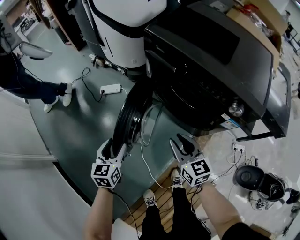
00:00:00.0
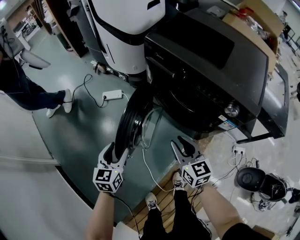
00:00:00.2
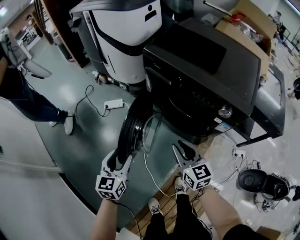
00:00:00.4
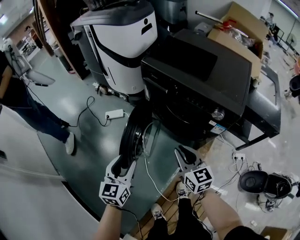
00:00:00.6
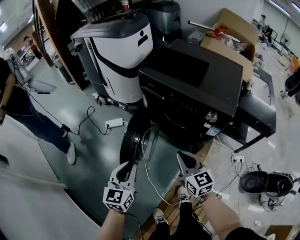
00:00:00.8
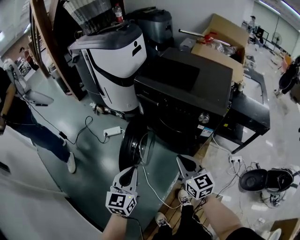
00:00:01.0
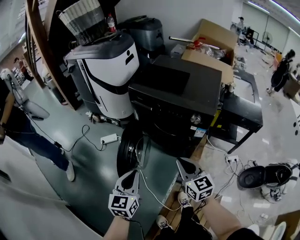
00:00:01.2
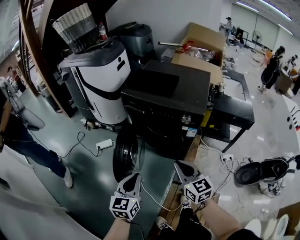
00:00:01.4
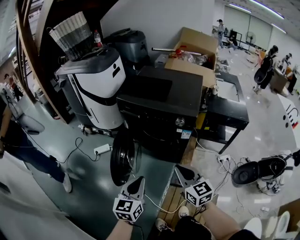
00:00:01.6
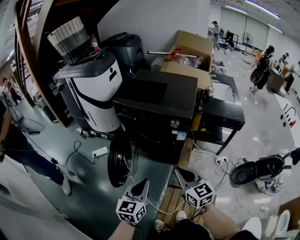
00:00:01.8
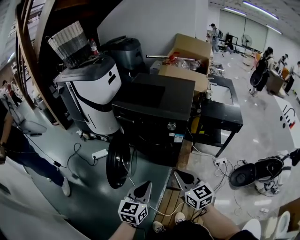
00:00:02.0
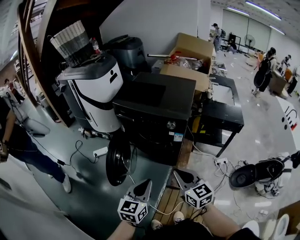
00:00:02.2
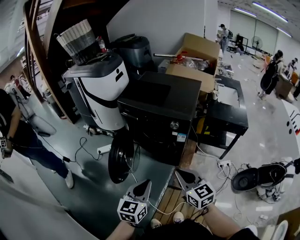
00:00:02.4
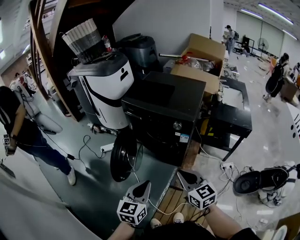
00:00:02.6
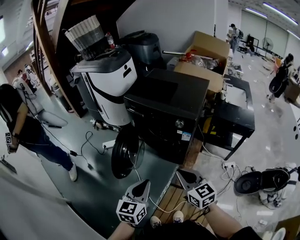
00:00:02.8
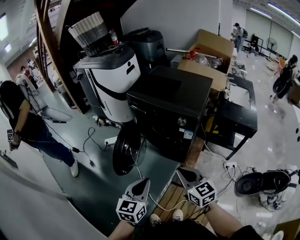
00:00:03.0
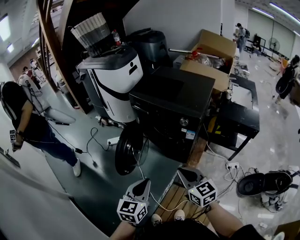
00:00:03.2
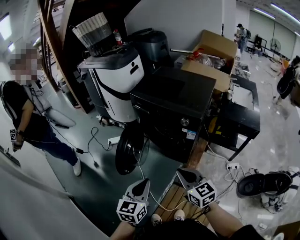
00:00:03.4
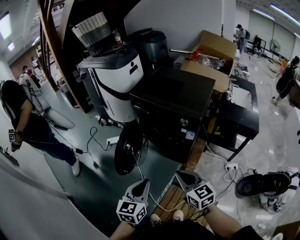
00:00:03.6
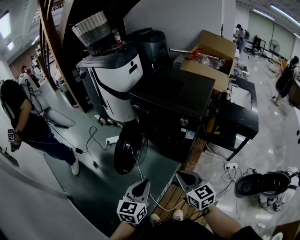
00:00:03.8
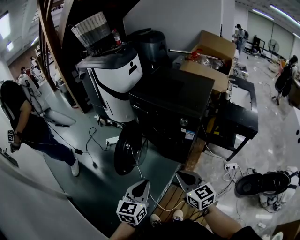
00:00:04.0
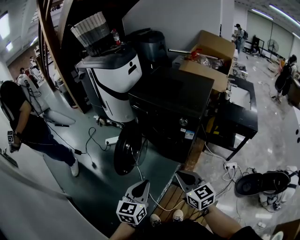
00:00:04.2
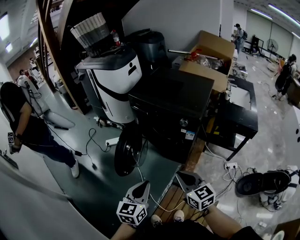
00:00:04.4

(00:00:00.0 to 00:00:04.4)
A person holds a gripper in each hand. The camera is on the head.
00:00:00.0 - 00:00:01.4: The left gripper is displaced upward, backward and to the right by roughly 30 cm, turns by roughly 30 degrees, and closes its fingers, while the right gripper moves upward and backward, some 25 cm, and closes up.
00:00:01.4 - 00:00:03.0: The two grippers go about 10 cm to the right and backward.
00:00:03.0 - 00:00:04.4: The grippers move only a little.

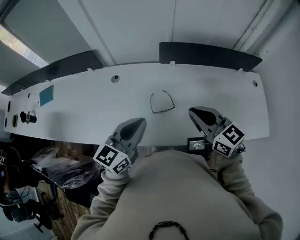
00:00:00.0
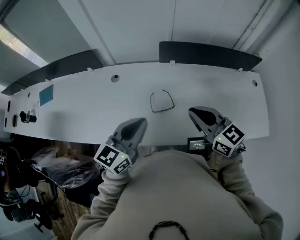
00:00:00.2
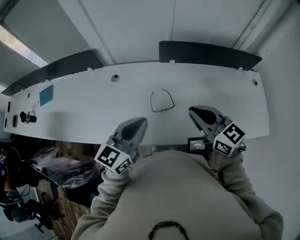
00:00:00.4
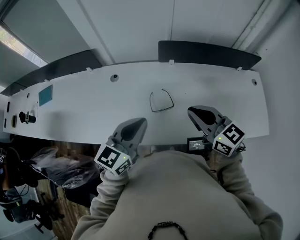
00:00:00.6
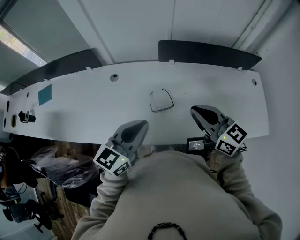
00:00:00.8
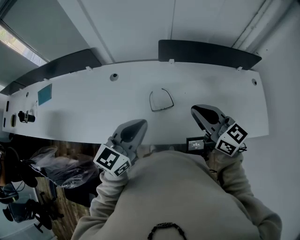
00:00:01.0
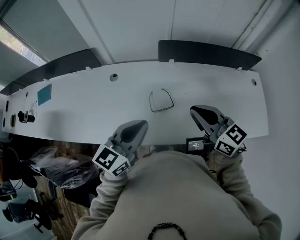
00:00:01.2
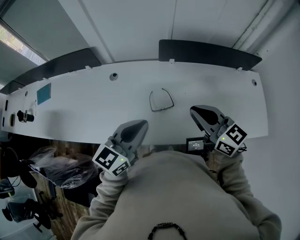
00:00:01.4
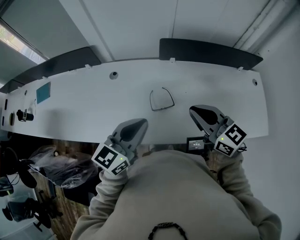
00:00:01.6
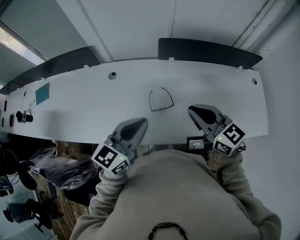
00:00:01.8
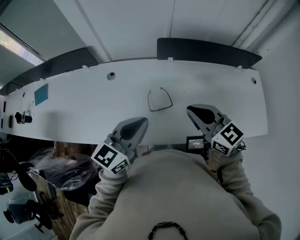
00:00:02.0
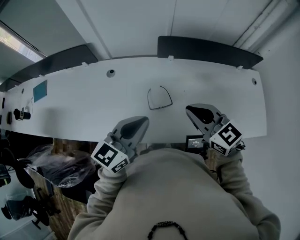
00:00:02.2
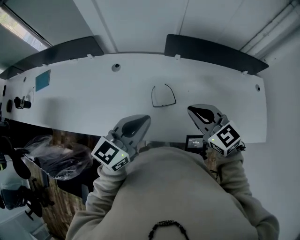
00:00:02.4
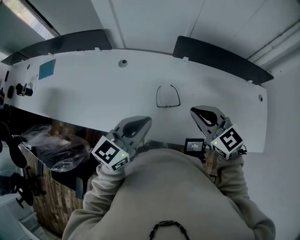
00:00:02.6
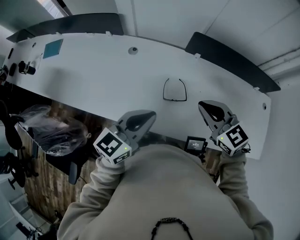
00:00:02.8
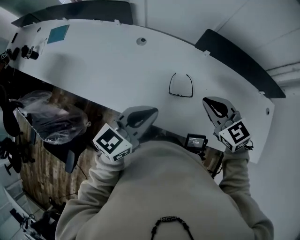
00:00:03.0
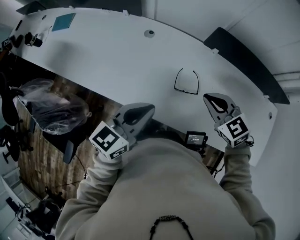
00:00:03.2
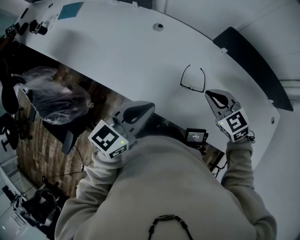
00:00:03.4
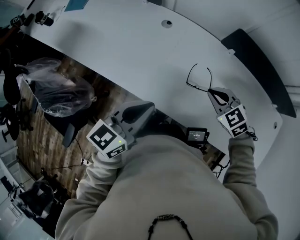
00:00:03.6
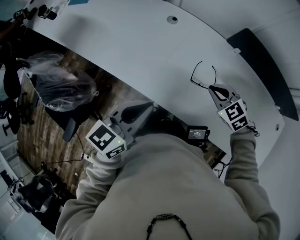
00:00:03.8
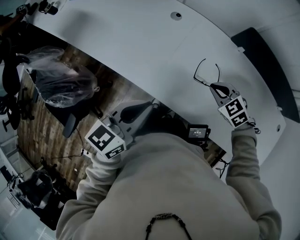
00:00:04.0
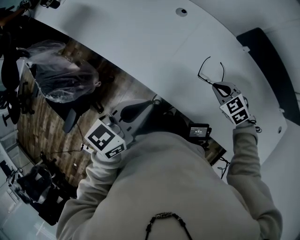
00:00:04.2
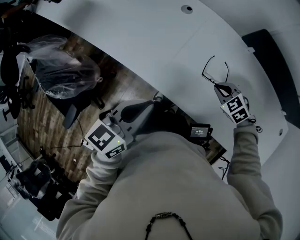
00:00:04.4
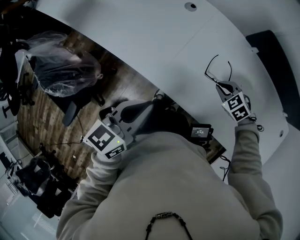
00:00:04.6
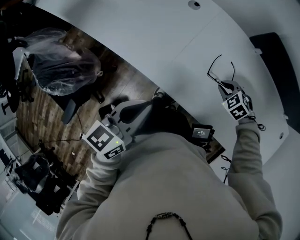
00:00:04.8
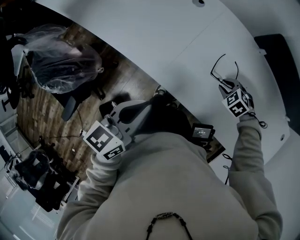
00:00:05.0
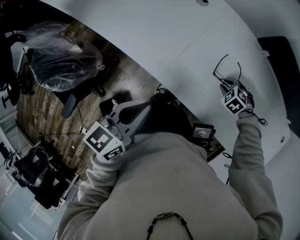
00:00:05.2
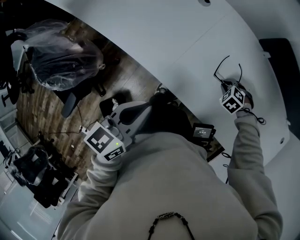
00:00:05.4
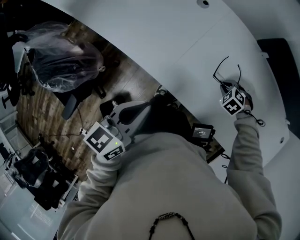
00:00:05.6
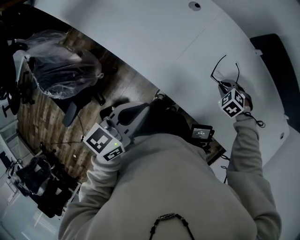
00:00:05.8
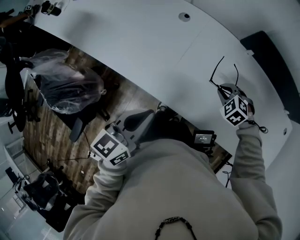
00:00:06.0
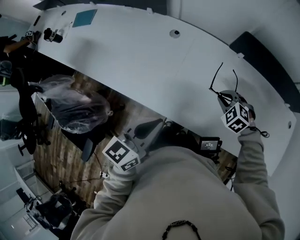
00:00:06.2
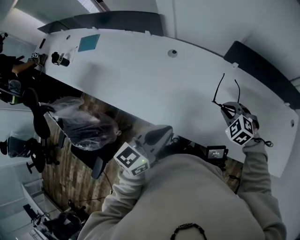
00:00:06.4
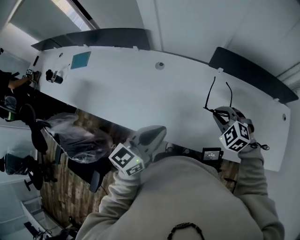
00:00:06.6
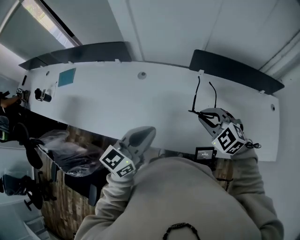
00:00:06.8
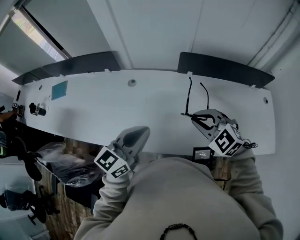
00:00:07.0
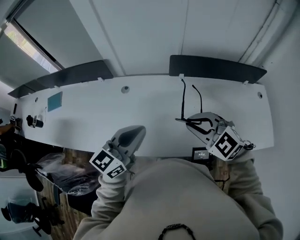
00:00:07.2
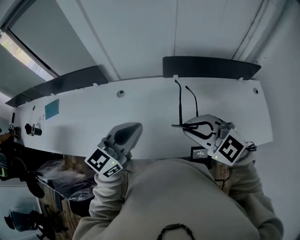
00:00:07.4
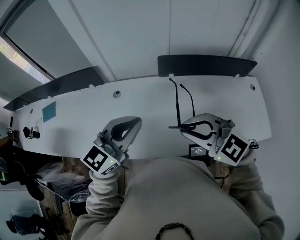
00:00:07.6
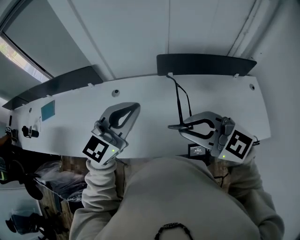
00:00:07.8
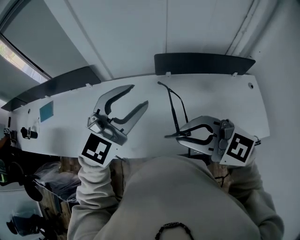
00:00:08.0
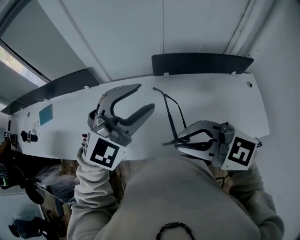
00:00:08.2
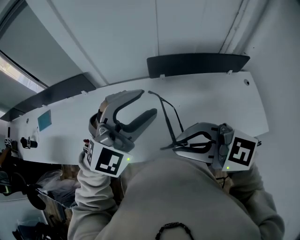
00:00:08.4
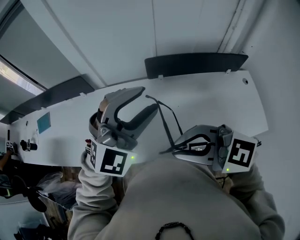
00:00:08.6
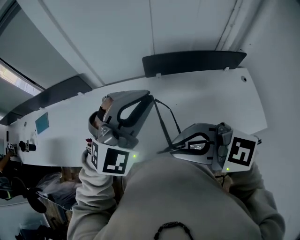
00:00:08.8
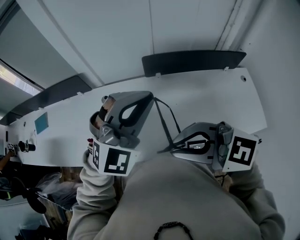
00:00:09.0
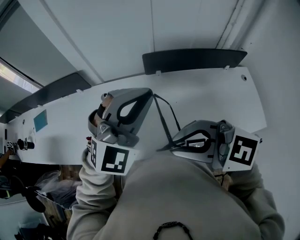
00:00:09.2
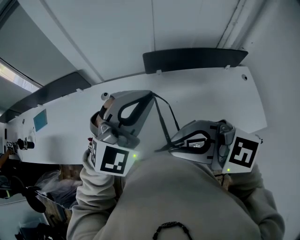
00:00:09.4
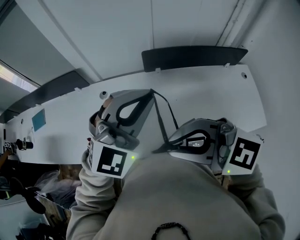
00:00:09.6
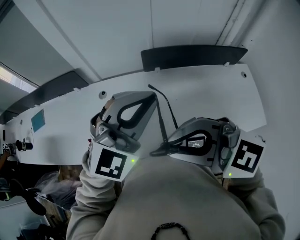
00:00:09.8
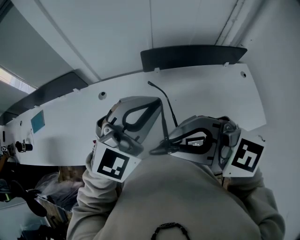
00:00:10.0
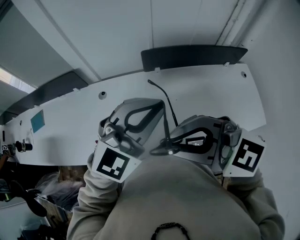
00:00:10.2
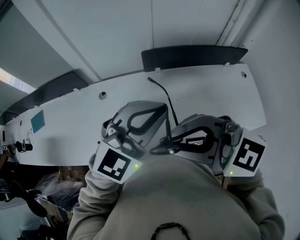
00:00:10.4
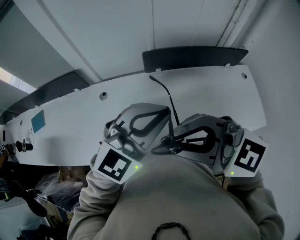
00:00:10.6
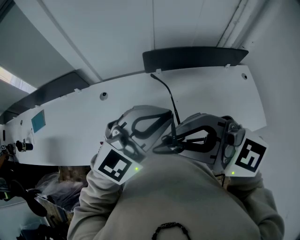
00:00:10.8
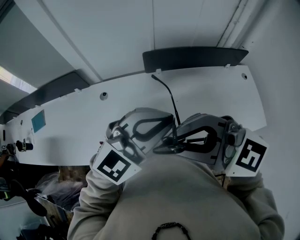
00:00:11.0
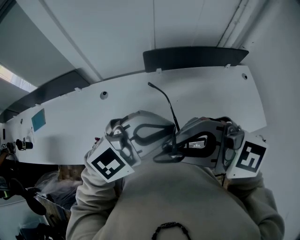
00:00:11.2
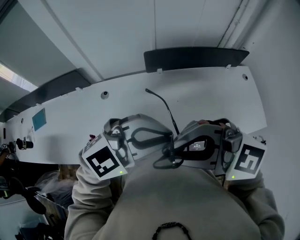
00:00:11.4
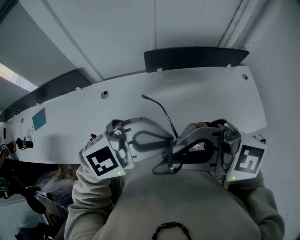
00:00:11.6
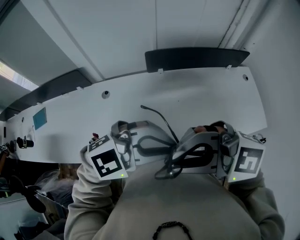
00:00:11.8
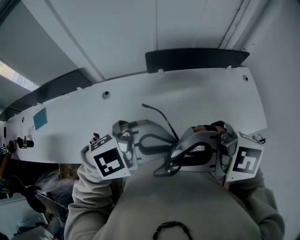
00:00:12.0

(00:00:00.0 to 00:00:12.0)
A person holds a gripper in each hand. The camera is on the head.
00:00:00.0 - 00:00:01.6: The grippers make only small movements.
00:00:01.6 - 00:00:03.0: The right gripper shifts some 5 cm downward, and swivels roughly 30 degrees.
00:00:03.0 - 00:00:04.4: The left gripper is displaced to the left, downward and backward by roughly 15 cm, and changes its angle by roughly 20 degrees. Meanwhile the right gripper shifts some 20 cm downward, and turns by approximately 40 degrees.
00:00:04.4 - 00:00:06.0: The right gripper moves some 10 cm downward and comes back.
00:00:06.0 - 00:00:07.6: The left gripper is displaced upward, to the right and forward by about 25 cm, and rotates approximately 50 degrees. The right gripper moves upward, about 35 cm, and points its fingers about 40 degrees further upward.
00:00:07.6 - 00:00:09.0: The left gripper ends up roughly 15 cm from where it was, rolls clockwise, seen from behind, by roughly 40 degrees, and opens and closes again; the right gripper shifts approximately 5 cm upward.
00:00:09.0 - 00:00:10.4: The left gripper turns by roughly 20 degrees.
00:00:10.4 - 00:00:12.0: The right gripper changes place by approximately 5 cm; the left gripper changes place by roughly 10 cm, and turns by roughly 40 degrees.

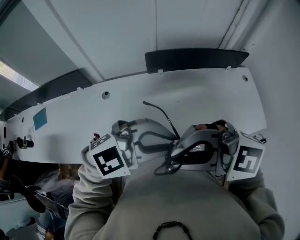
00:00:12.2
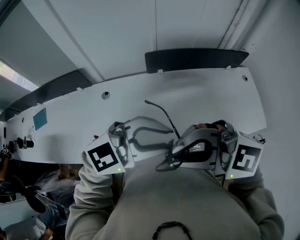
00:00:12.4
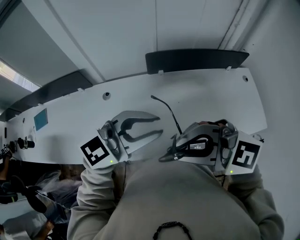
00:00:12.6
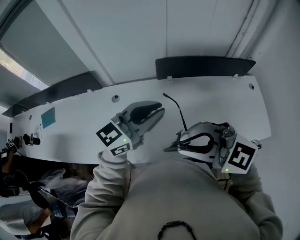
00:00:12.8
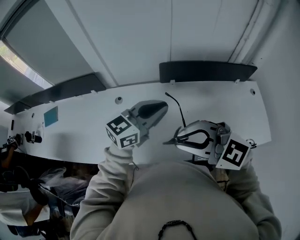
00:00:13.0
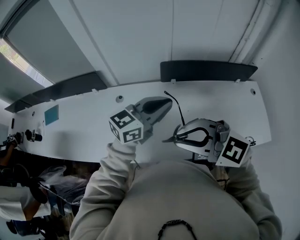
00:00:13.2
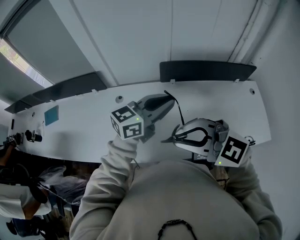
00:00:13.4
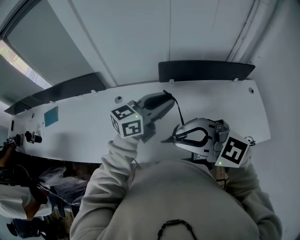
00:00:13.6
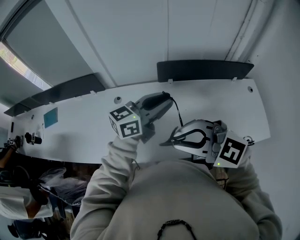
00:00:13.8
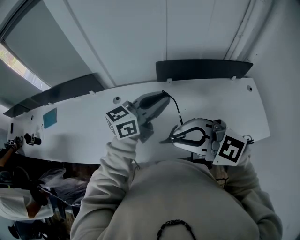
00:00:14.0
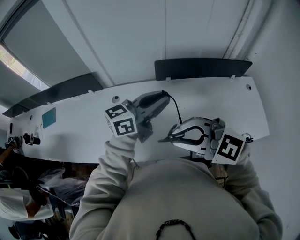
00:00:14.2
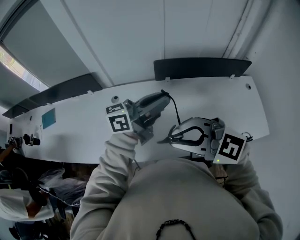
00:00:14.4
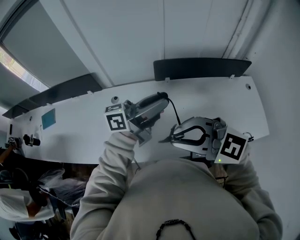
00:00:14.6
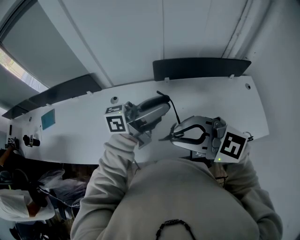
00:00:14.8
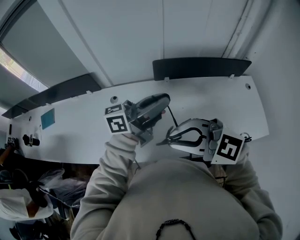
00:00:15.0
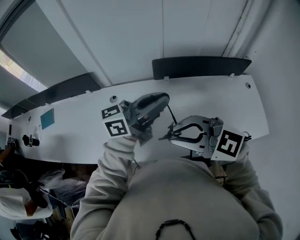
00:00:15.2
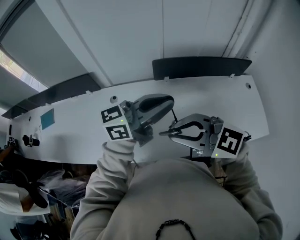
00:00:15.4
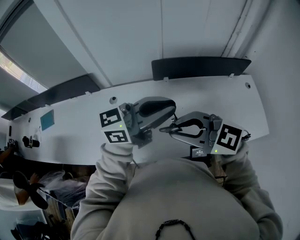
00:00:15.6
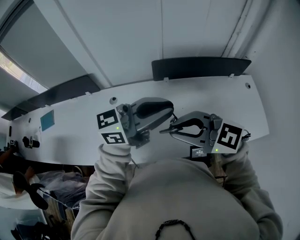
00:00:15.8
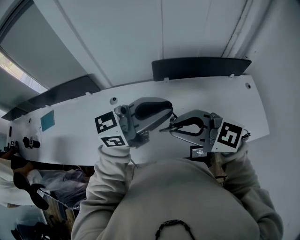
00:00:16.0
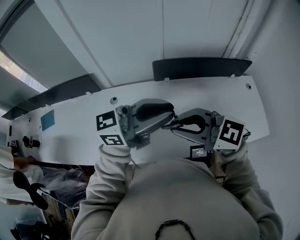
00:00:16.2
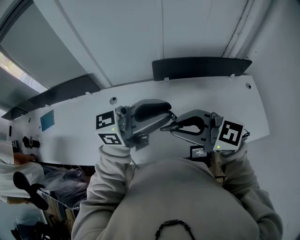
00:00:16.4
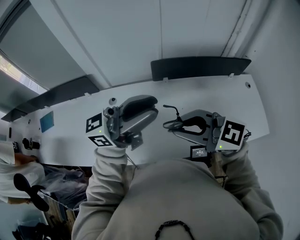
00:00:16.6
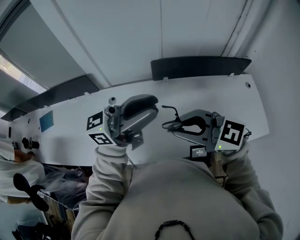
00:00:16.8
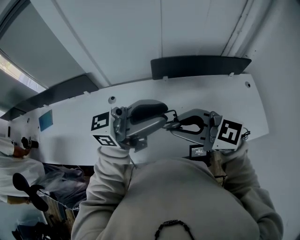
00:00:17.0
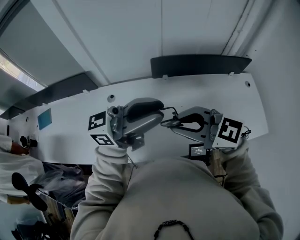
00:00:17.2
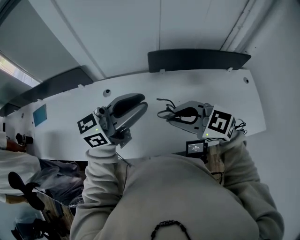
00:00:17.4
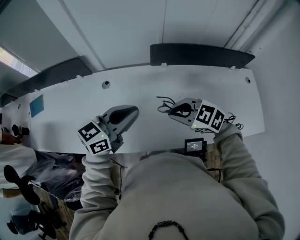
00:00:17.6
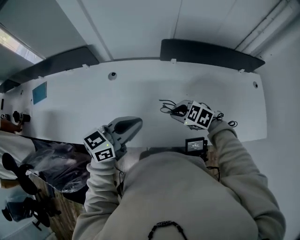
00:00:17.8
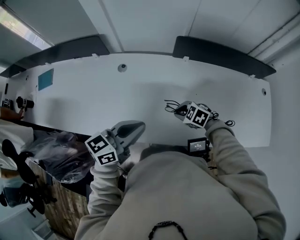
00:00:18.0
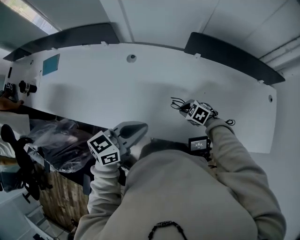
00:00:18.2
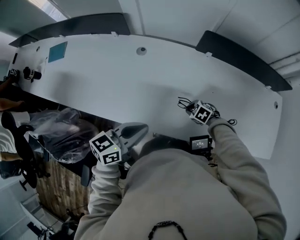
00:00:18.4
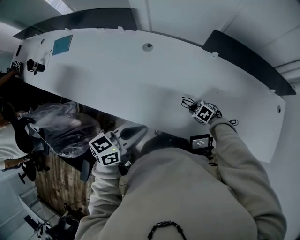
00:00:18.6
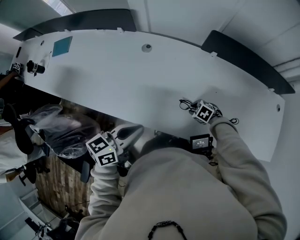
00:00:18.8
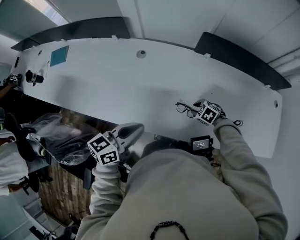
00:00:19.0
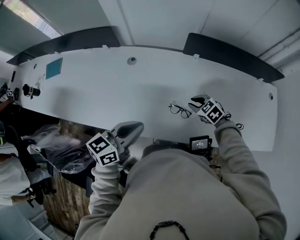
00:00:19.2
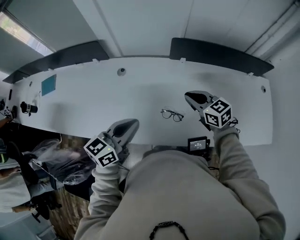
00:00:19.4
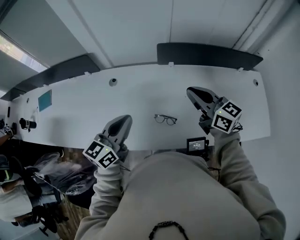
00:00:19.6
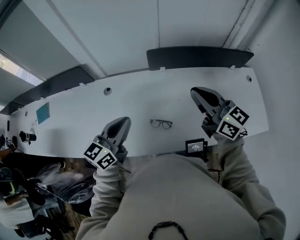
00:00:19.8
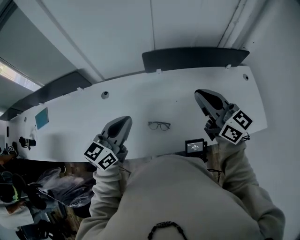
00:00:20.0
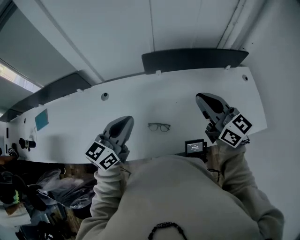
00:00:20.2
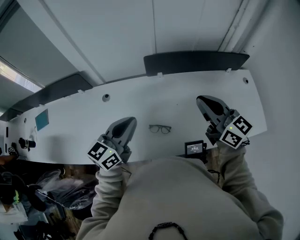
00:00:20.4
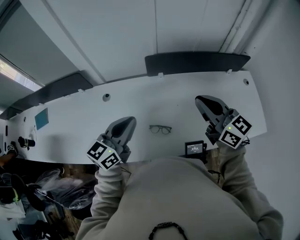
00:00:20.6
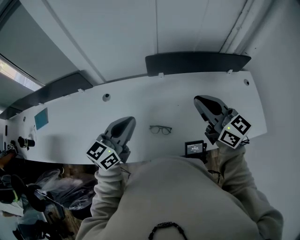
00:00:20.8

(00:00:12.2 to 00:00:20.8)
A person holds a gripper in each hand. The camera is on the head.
00:00:12.2 - 00:00:13.6: The left gripper changes place by some 15 cm, and rotates some 50 degrees.
00:00:13.6 - 00:00:15.0: The left gripper rotates approximately 30 degrees, and opens, then closes once more.
00:00:15.0 - 00:00:16.6: The right gripper changes place by approximately 5 cm; the left gripper heads upward, covering some 5 cm, and swivels some 20 degrees.
00:00:16.6 - 00:00:18.0: The left gripper travels downward by about 20 cm, points its fingers about 30 degrees further downward, and closes up; the right gripper travels downward by about 35 cm, and points its fingers some 50 degrees further downward.
00:00:18.0 - 00:00:19.4: The right gripper is displaced upward by some 15 cm, and points its fingers some 30 degrees further upward.
00:00:19.4 - 00:00:20.8: The right gripper shifts roughly 20 cm upward and to the right, and turns by roughly 30 degrees, while the left gripper shifts about 10 cm forward, to the right and upward.
